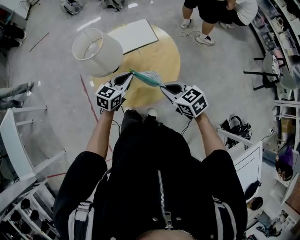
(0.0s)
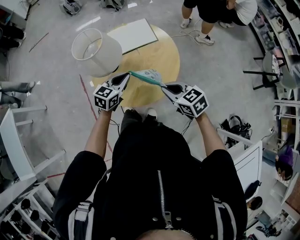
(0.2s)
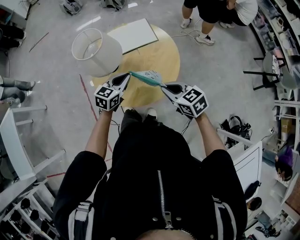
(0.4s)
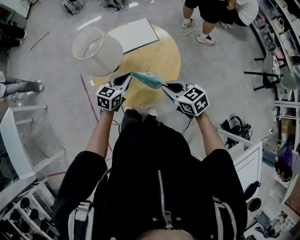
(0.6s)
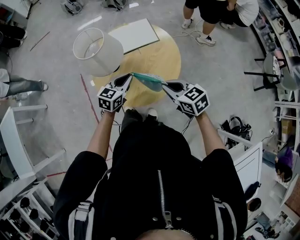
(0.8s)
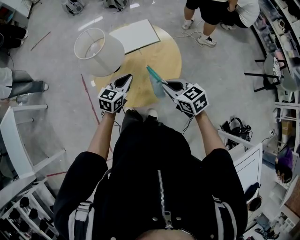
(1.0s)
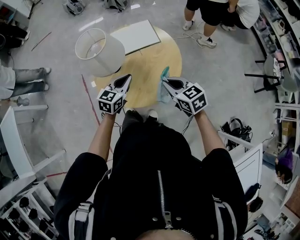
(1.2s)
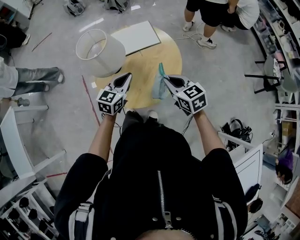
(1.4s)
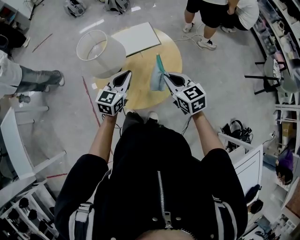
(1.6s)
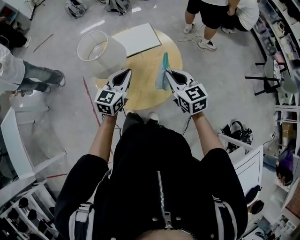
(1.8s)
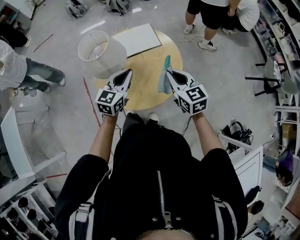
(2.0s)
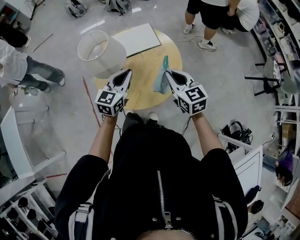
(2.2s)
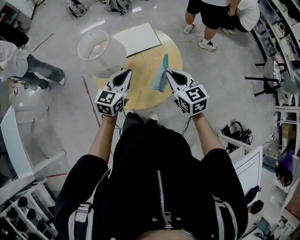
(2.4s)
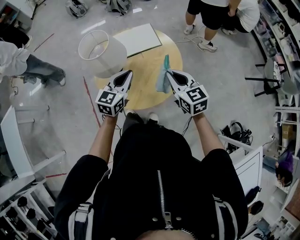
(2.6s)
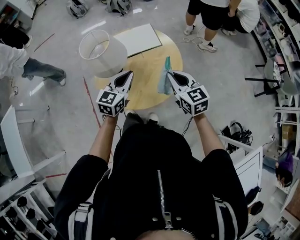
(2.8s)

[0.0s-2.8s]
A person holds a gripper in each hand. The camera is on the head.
0.0s to 1.4s: There are only small adjustments of the grippers.
1.4s to 2.8s: The grippers move only a little.

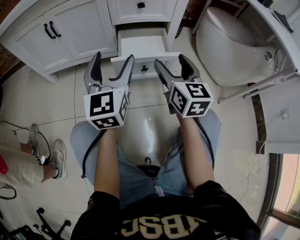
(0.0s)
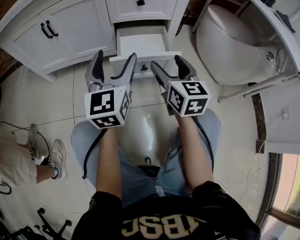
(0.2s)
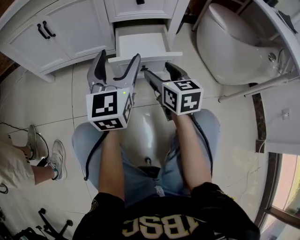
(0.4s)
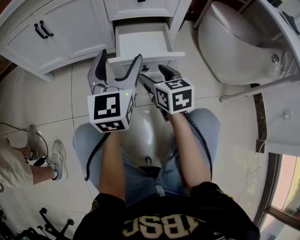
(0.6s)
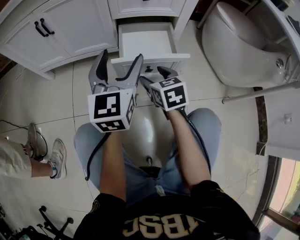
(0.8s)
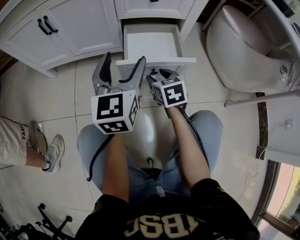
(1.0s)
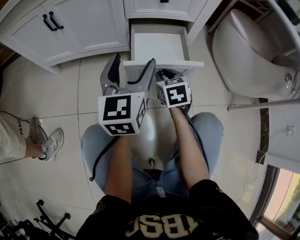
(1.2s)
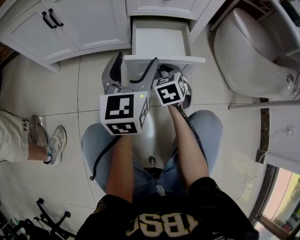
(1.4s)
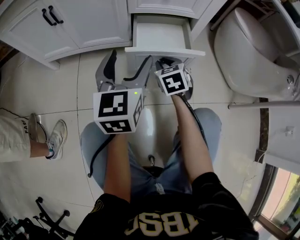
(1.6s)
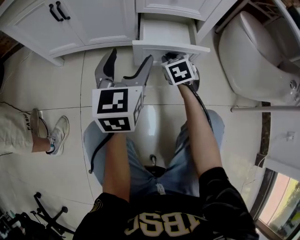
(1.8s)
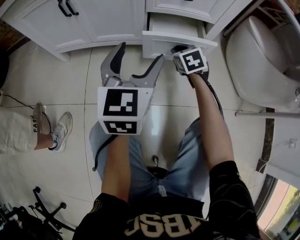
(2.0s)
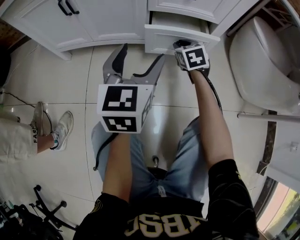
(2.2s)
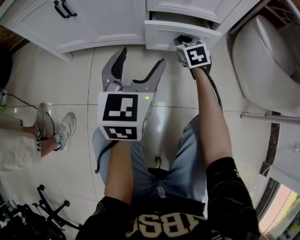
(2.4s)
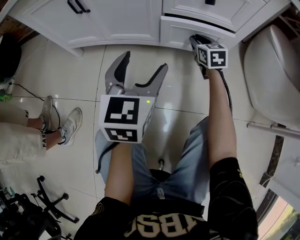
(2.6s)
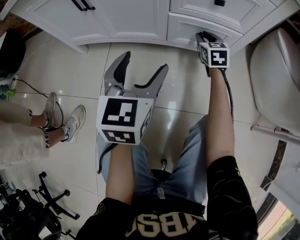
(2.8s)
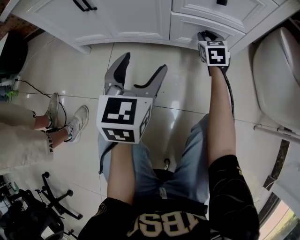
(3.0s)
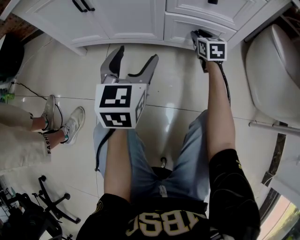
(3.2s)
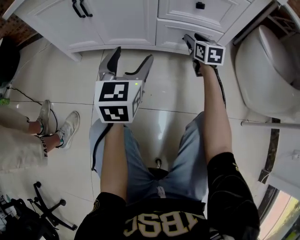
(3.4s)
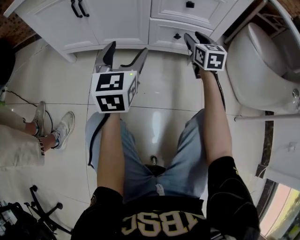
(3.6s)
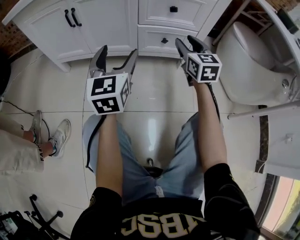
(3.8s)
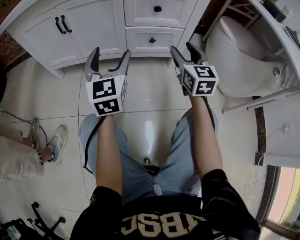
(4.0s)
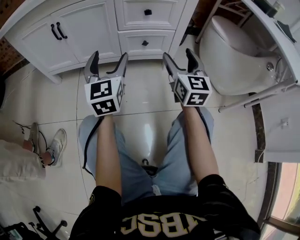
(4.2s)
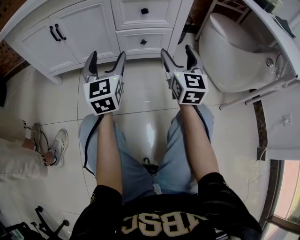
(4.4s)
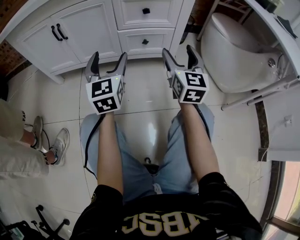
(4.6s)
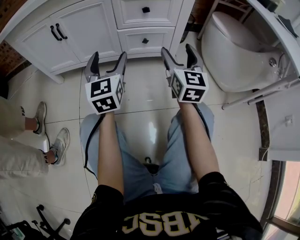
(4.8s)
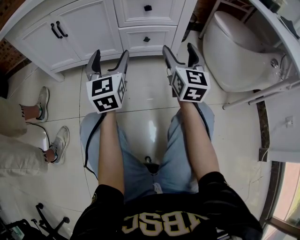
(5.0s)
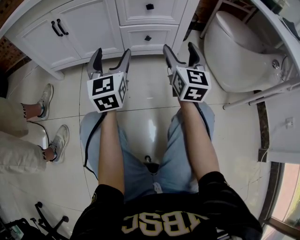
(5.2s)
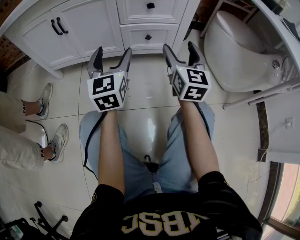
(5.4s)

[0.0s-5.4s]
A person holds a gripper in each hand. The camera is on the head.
0.0s to 1.4s: The right gripper travels downward and forward by roughly 20 cm, points its fingers roughly 40 degrees further downward, and closes. Meanwhile the left gripper is displaced forward by approximately 5 cm.
1.4s to 2.8s: The left gripper heads to the left, covering about 5 cm, while the right gripper heads forward, covering approximately 20 cm.
2.8s to 4.0s: The right gripper moves backward and upward, roughly 25 cm, turns by some 20 degrees, and opens up. Meanwhile the left gripper moves upward, about 5 cm.
4.0s to 5.4s: The grippers make only small movements.

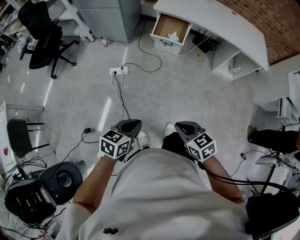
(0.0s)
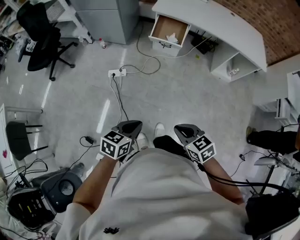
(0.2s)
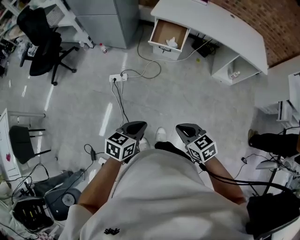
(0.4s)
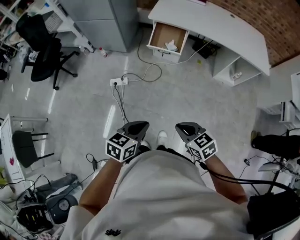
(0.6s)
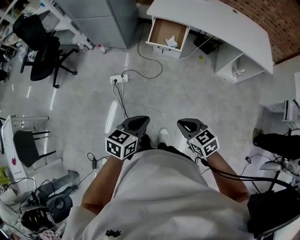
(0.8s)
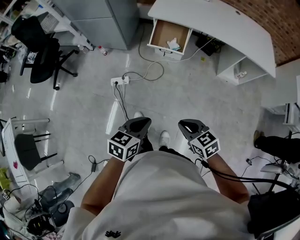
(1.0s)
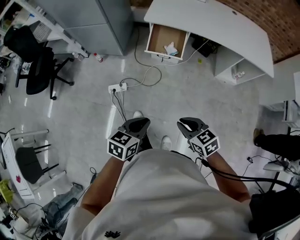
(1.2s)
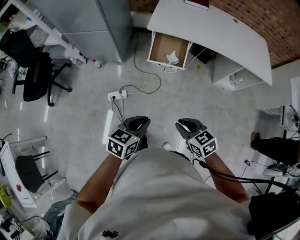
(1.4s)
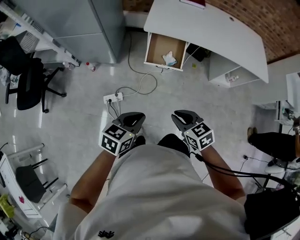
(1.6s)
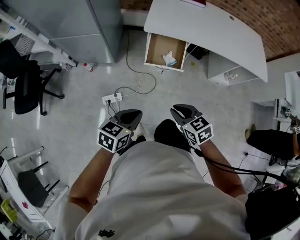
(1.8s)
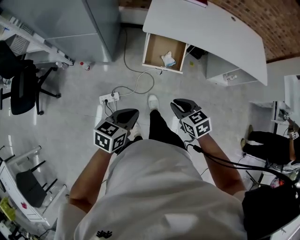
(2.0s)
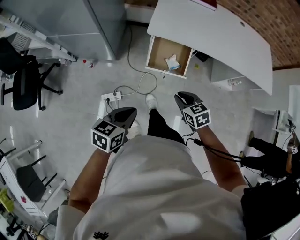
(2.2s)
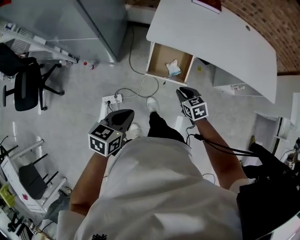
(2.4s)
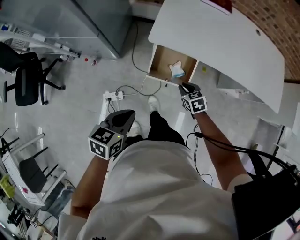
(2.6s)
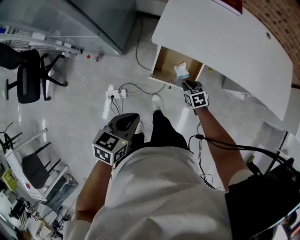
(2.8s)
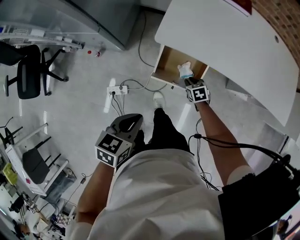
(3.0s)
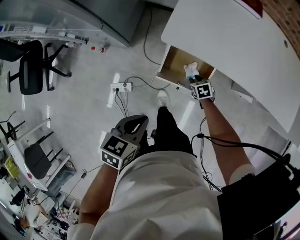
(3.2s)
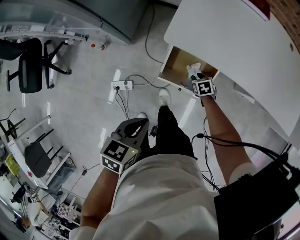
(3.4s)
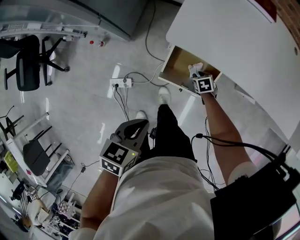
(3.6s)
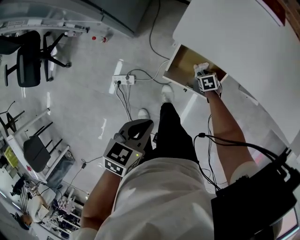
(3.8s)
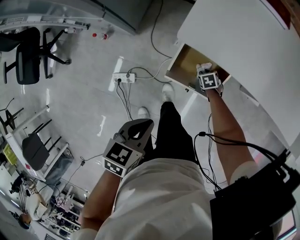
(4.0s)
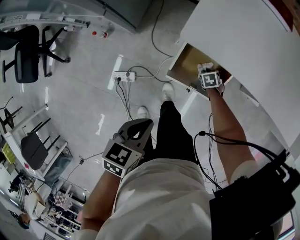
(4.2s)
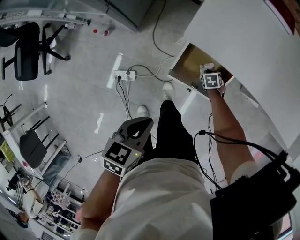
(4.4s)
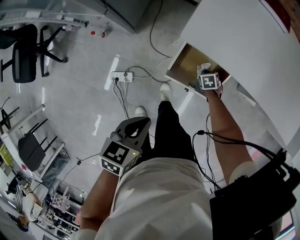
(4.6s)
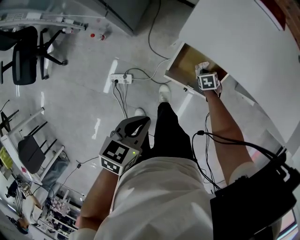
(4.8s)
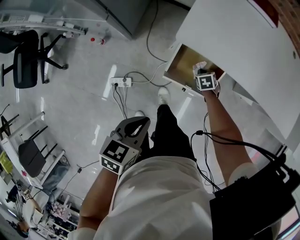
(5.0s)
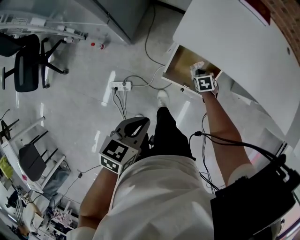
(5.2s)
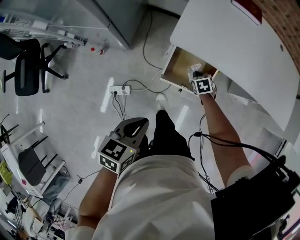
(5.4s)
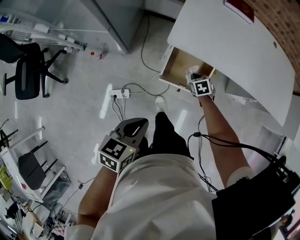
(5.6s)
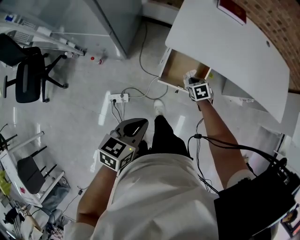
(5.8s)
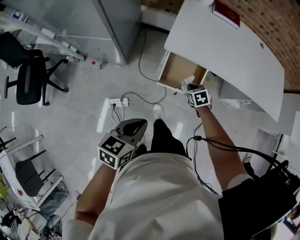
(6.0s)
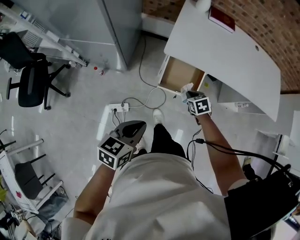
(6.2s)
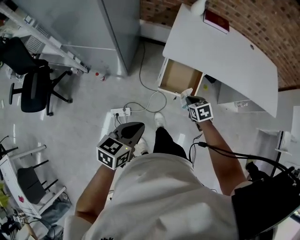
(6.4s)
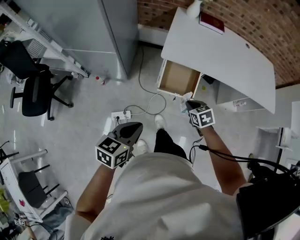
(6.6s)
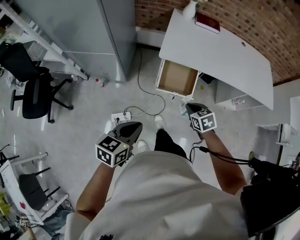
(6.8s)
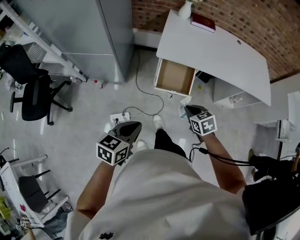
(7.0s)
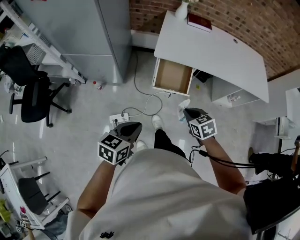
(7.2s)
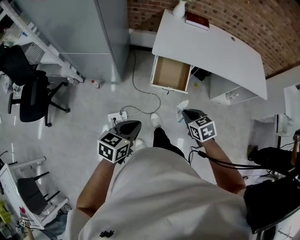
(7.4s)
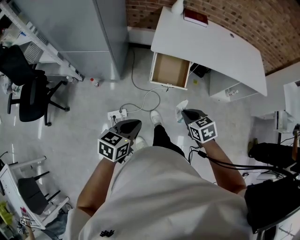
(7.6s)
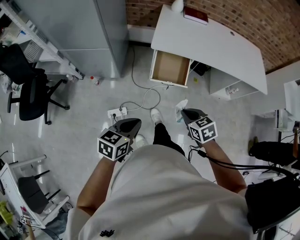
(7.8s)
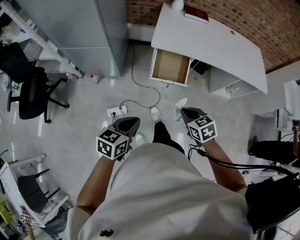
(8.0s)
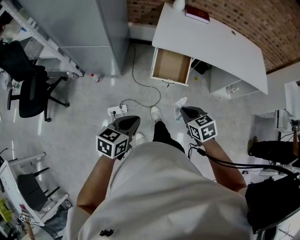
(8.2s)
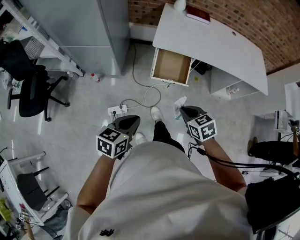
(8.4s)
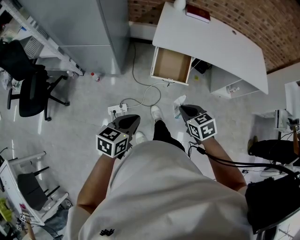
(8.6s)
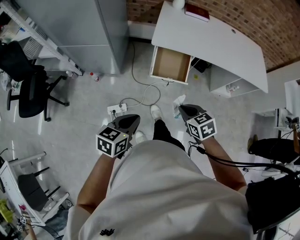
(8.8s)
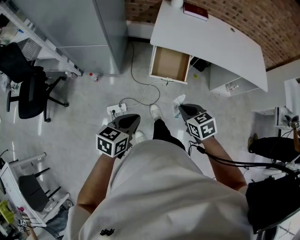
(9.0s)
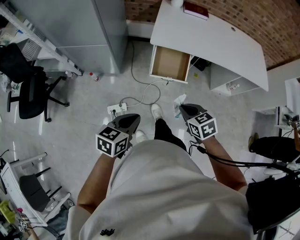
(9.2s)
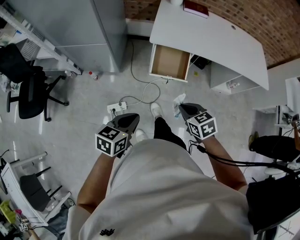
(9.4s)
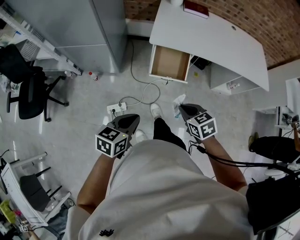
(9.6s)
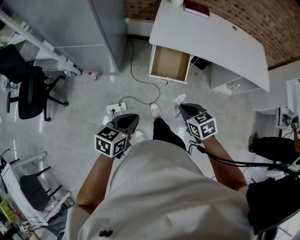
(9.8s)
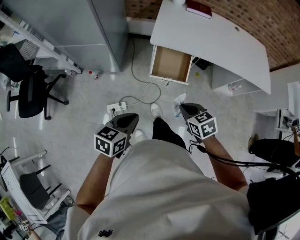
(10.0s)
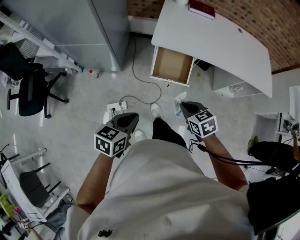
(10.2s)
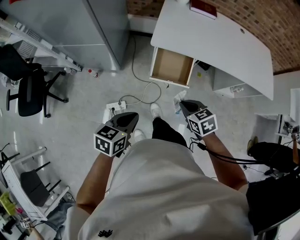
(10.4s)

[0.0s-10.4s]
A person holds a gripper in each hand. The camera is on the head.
0.0s to 1.4s: The grippers both shift forward by about 35 cm.
1.4s to 3.0s: The pair of grippers is taken forward, about 50 cm. The right gripper shifts roughly 30 cm downward, and turns by approximately 20 degrees.
3.0s to 4.4s: The right gripper goes about 15 cm downward, while the left gripper travels downward by some 10 cm.
4.4s to 6.0s: The right gripper goes roughly 30 cm upward. The left gripper heads upward, covering approximately 15 cm.
6.0s to 7.4s: The left gripper heads backward, covering some 20 cm; the right gripper travels backward and upward by approximately 35 cm.
7.4s to 9.0s: The grippers make only small movements.
9.0s to 10.4s: The two grippers go roughly 10 cm forward.

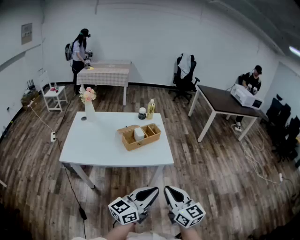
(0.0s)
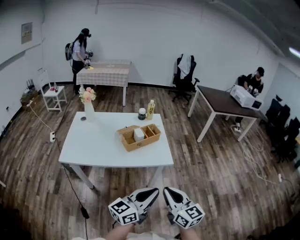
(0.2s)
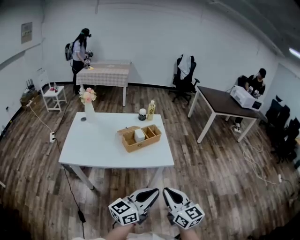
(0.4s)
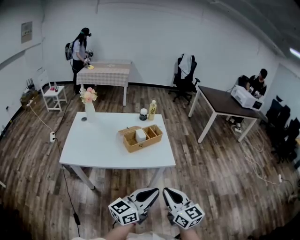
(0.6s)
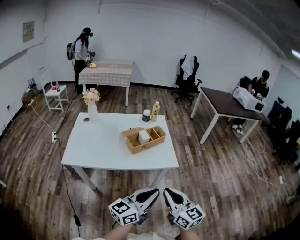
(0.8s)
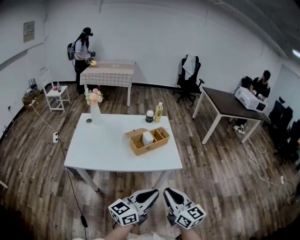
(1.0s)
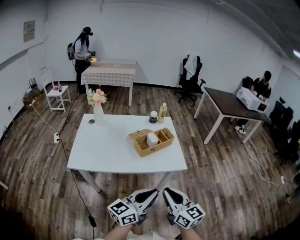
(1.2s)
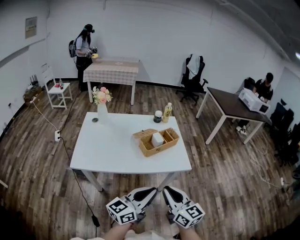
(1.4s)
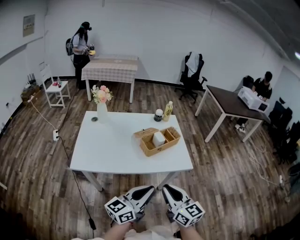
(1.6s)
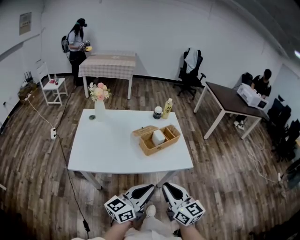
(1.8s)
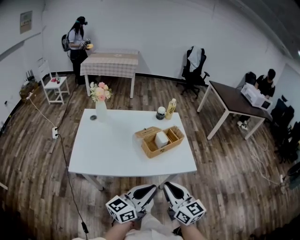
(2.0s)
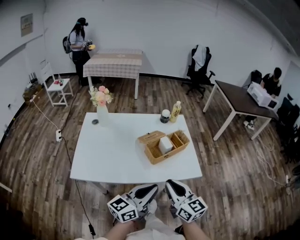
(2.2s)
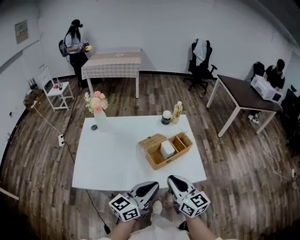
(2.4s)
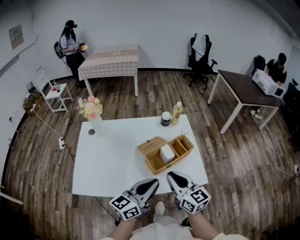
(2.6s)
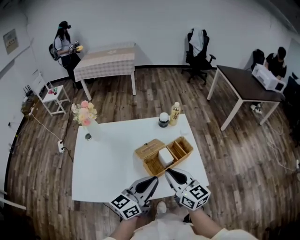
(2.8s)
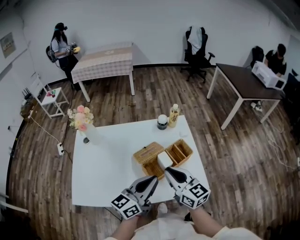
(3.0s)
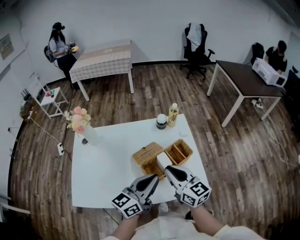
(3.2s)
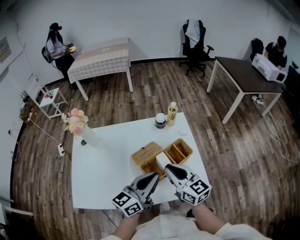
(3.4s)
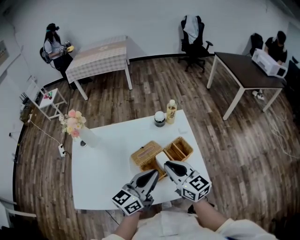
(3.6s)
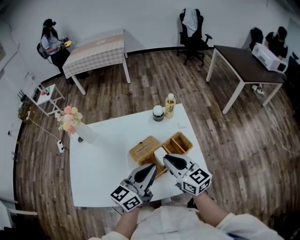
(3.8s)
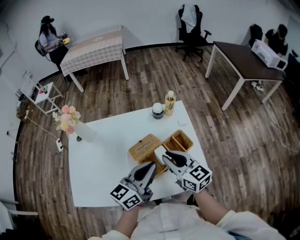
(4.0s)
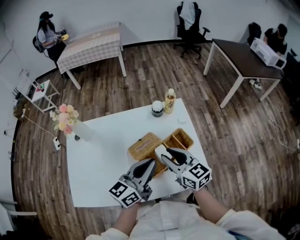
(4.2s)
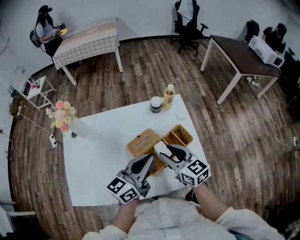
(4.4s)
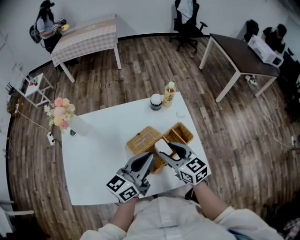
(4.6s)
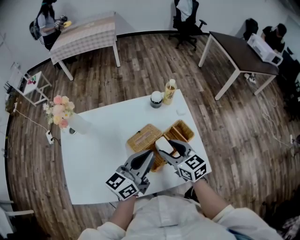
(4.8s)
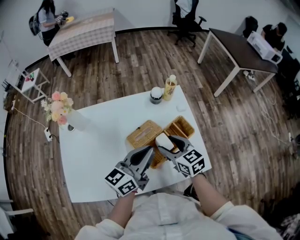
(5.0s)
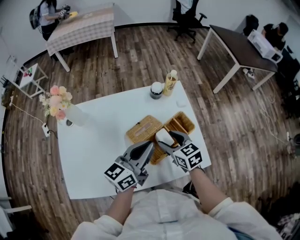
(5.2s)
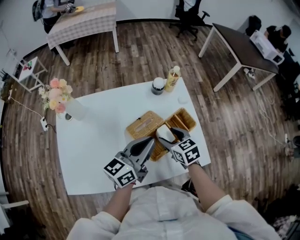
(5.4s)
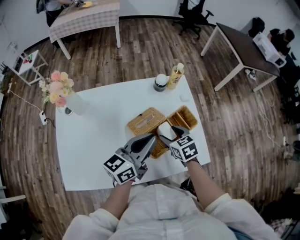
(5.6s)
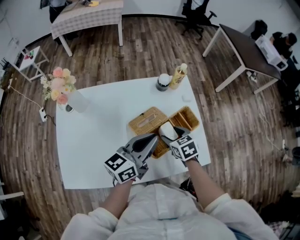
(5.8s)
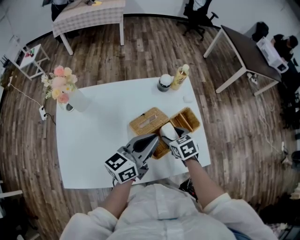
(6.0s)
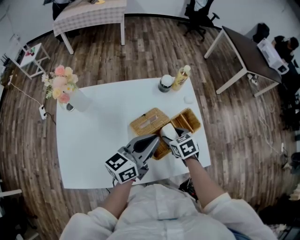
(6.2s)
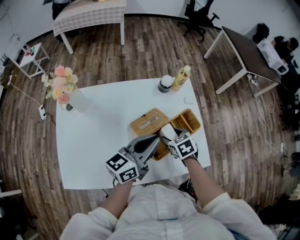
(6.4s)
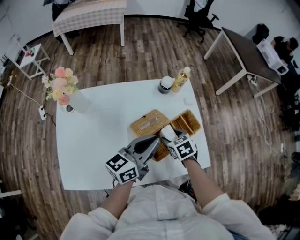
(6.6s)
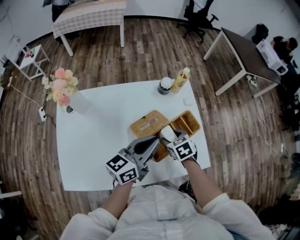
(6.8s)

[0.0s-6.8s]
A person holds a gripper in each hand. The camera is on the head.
0.0s to 1.4s: The two grippers go roughly 15 cm to the left.
1.4s to 2.8s: Both grippers travel together forward, about 30 cm.
2.8s to 4.0s: The two grippers go roughly 10 cm forward.
4.0s to 5.4s: The left gripper changes place by some 5 cm; the right gripper moves downward, roughly 10 cm, points its fingers some 30 degrees further downward, and opens its fingers.
5.4s to 6.8s: The right gripper heads downward, covering approximately 5 cm.
